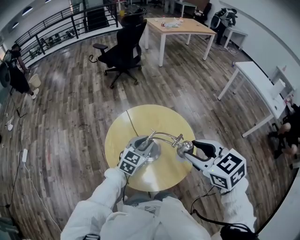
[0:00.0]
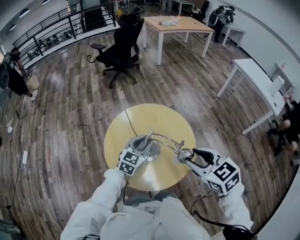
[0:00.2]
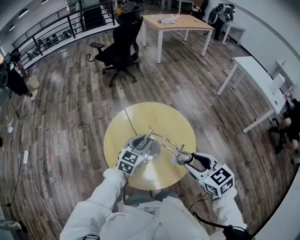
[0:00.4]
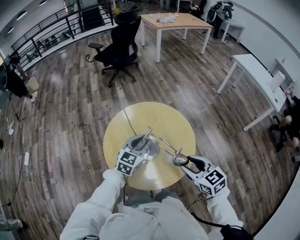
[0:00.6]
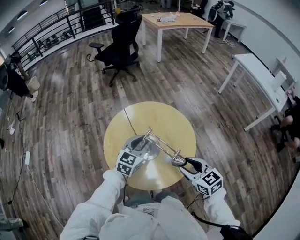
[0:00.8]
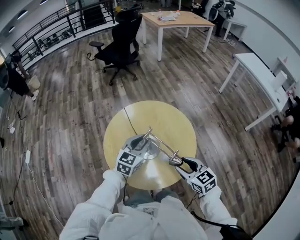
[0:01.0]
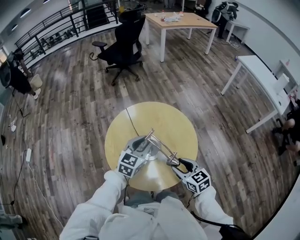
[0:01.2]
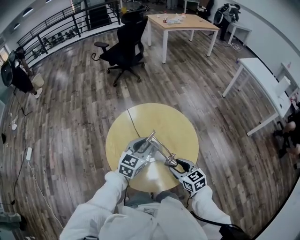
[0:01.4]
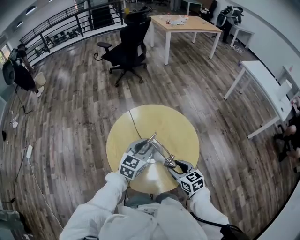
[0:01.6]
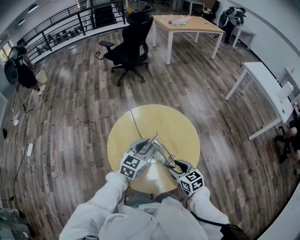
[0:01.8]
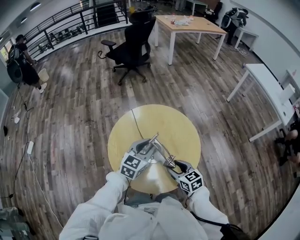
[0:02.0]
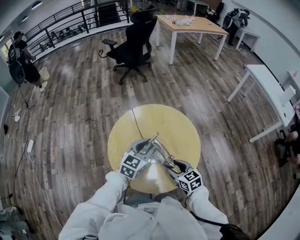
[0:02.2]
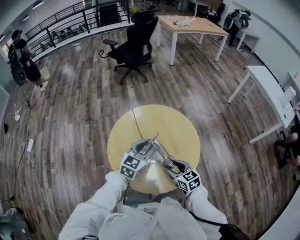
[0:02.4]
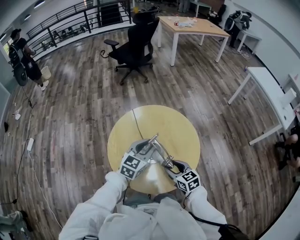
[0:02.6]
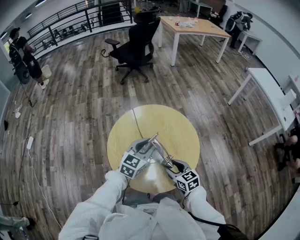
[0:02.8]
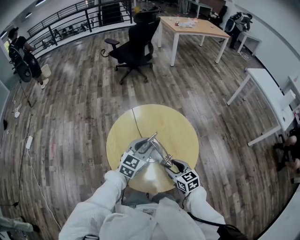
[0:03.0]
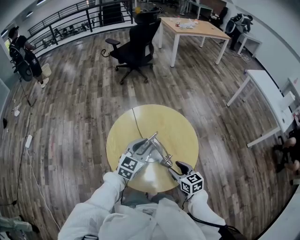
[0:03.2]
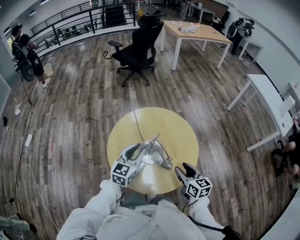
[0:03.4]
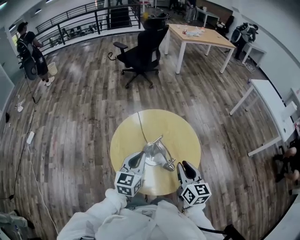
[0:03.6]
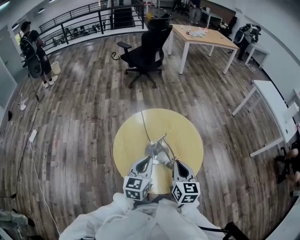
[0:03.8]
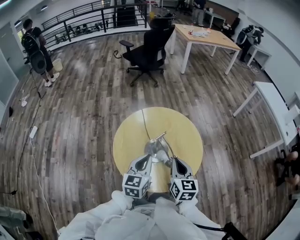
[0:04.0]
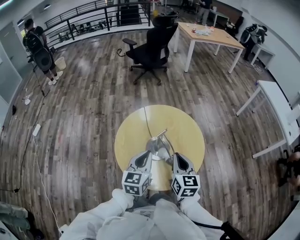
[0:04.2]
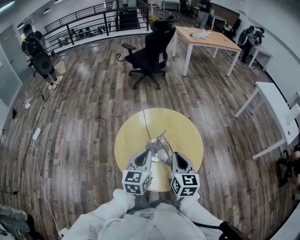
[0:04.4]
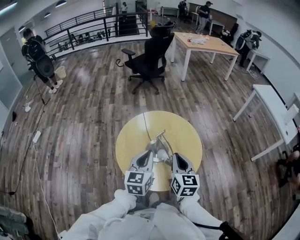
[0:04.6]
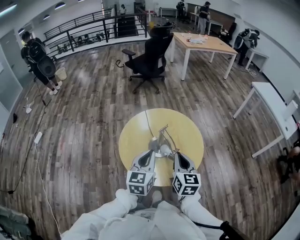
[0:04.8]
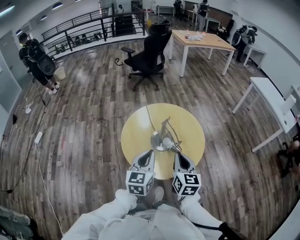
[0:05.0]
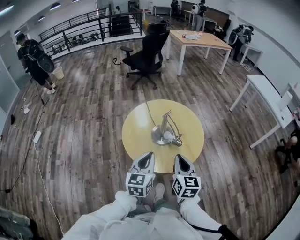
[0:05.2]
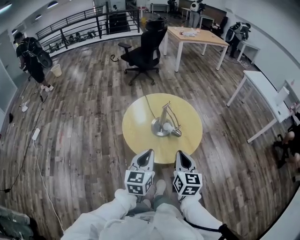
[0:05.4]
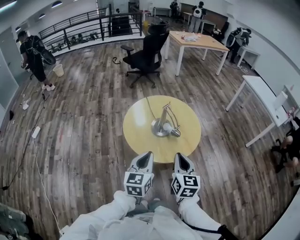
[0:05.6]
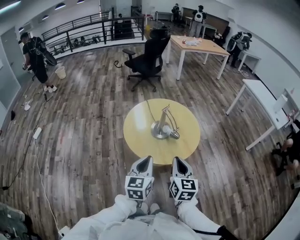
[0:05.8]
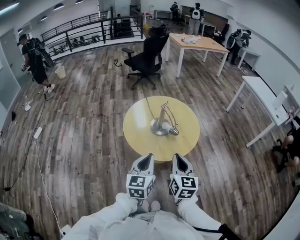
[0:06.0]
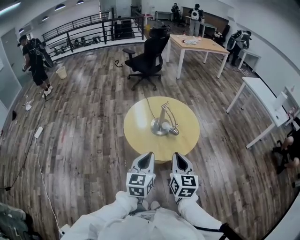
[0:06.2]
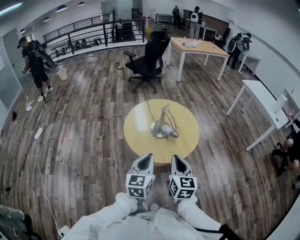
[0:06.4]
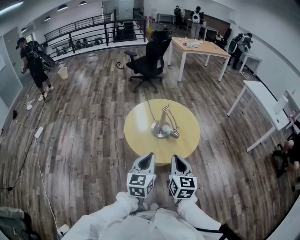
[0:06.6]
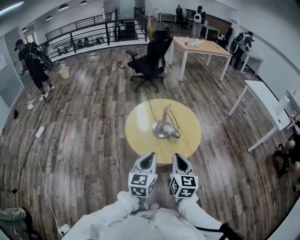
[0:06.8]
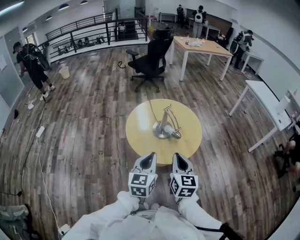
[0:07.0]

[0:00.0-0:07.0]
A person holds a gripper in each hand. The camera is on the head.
0:00.0 to 0:01.4: The right gripper travels downward by some 25 cm.
0:01.4 to 0:02.8: The grippers make only small movements.
0:02.8 to 0:04.2: The left gripper is displaced backward by roughly 10 cm, turns by roughly 30 degrees, and closes up; the right gripper moves upward, about 15 cm, swivels about 30 degrees, and closes up.
0:04.2 to 0:05.6: The two grippers go approximately 25 cm backward.
0:05.6 to 0:07.0: The grippers make only small movements.

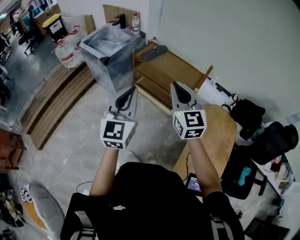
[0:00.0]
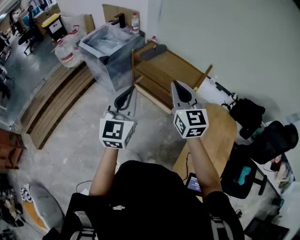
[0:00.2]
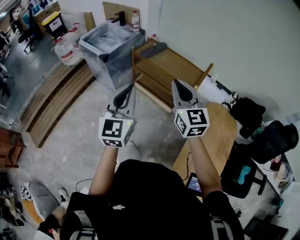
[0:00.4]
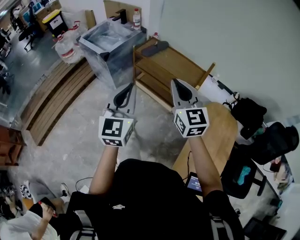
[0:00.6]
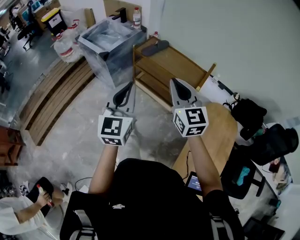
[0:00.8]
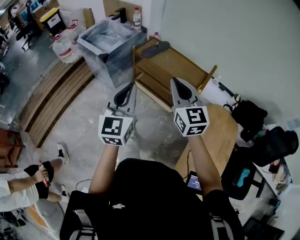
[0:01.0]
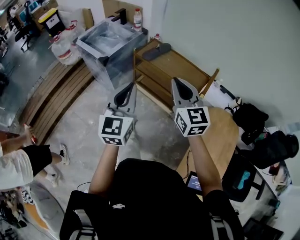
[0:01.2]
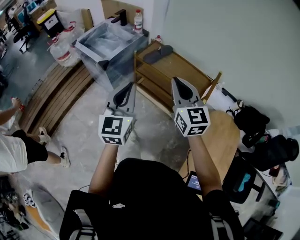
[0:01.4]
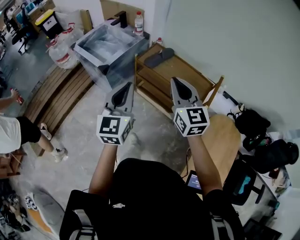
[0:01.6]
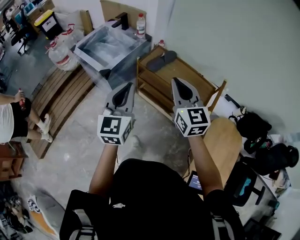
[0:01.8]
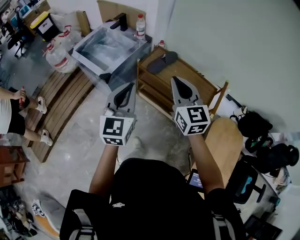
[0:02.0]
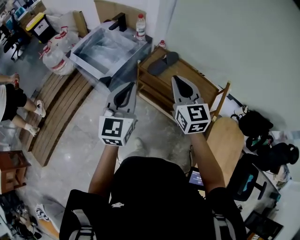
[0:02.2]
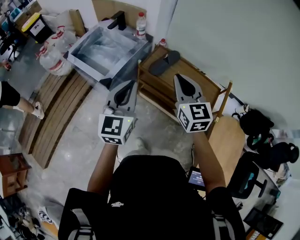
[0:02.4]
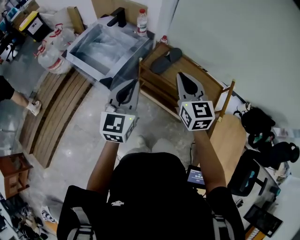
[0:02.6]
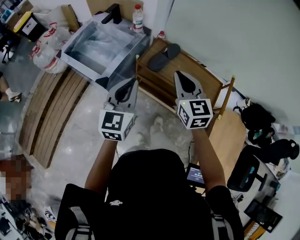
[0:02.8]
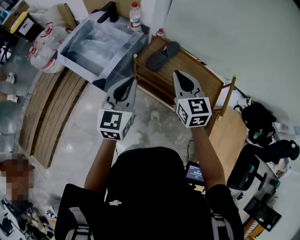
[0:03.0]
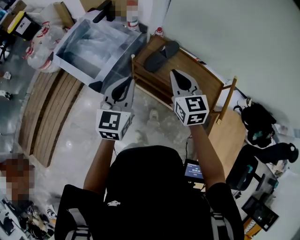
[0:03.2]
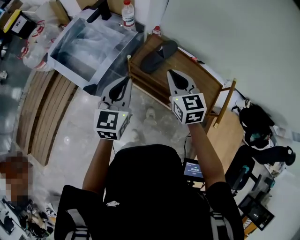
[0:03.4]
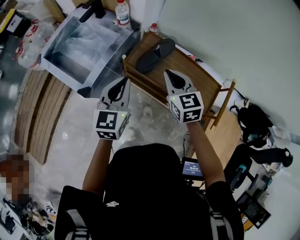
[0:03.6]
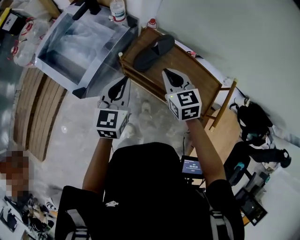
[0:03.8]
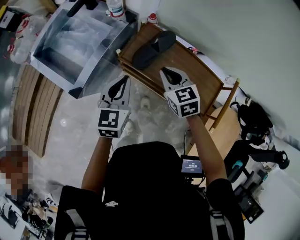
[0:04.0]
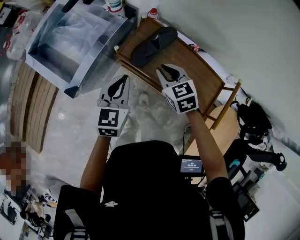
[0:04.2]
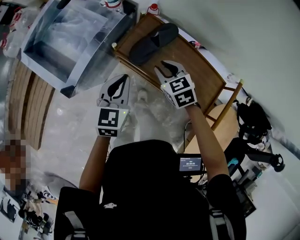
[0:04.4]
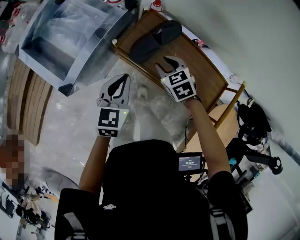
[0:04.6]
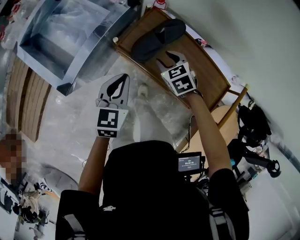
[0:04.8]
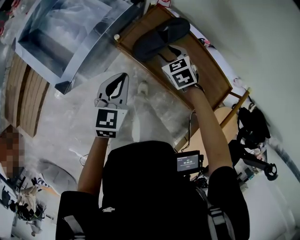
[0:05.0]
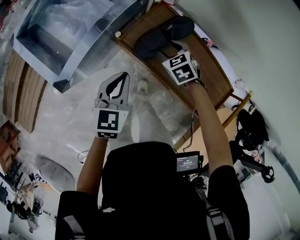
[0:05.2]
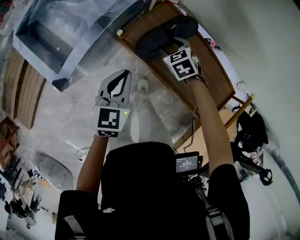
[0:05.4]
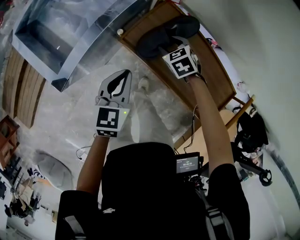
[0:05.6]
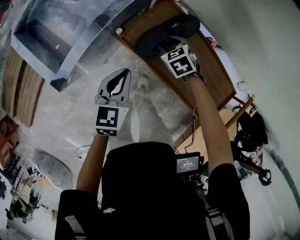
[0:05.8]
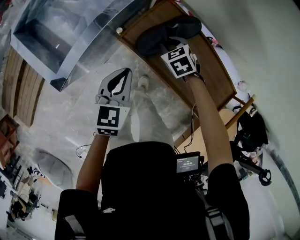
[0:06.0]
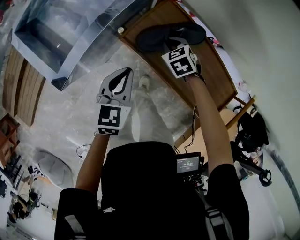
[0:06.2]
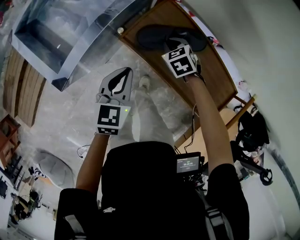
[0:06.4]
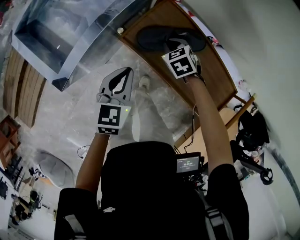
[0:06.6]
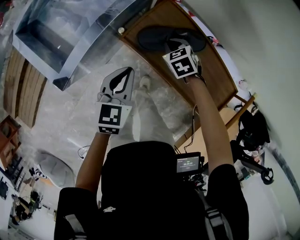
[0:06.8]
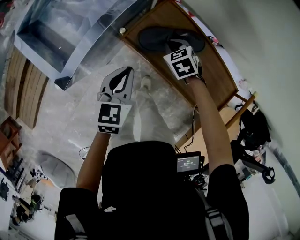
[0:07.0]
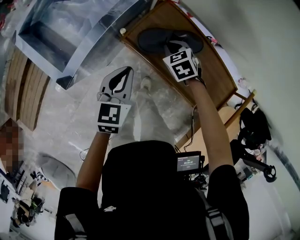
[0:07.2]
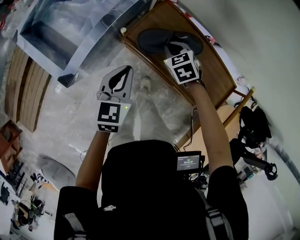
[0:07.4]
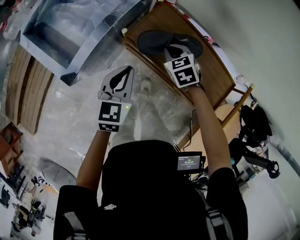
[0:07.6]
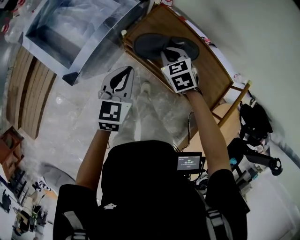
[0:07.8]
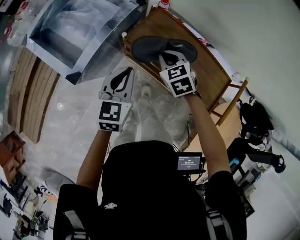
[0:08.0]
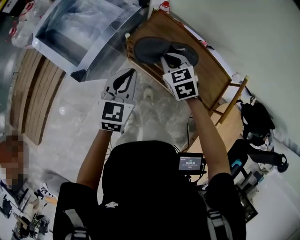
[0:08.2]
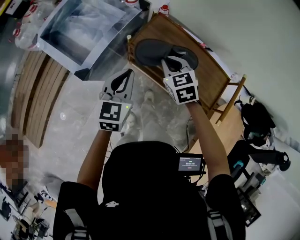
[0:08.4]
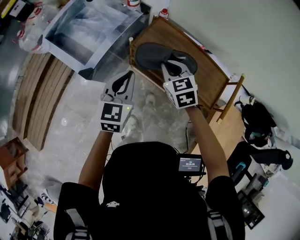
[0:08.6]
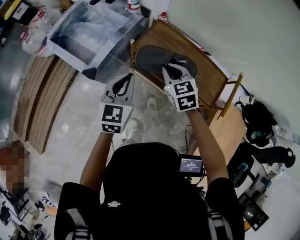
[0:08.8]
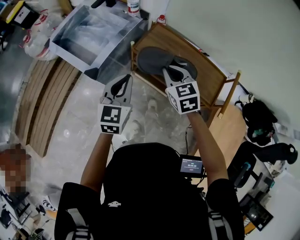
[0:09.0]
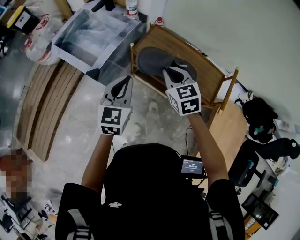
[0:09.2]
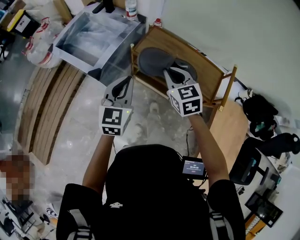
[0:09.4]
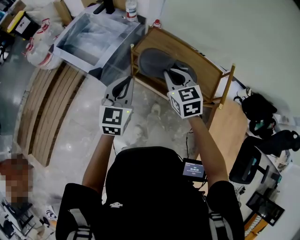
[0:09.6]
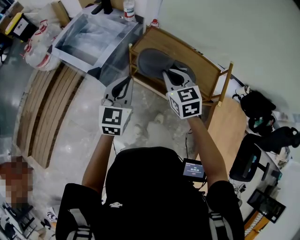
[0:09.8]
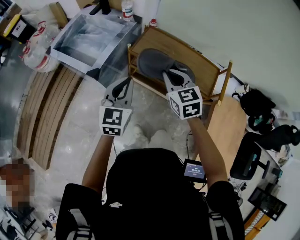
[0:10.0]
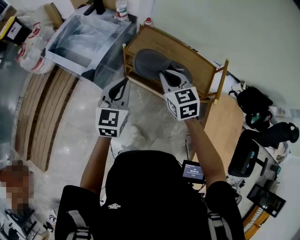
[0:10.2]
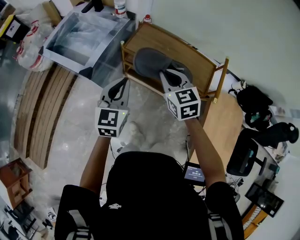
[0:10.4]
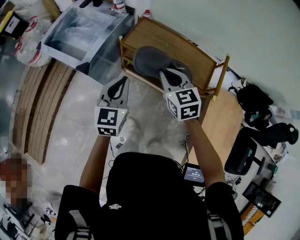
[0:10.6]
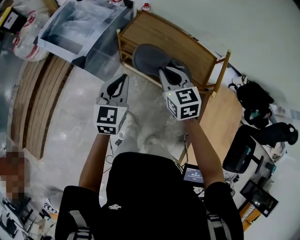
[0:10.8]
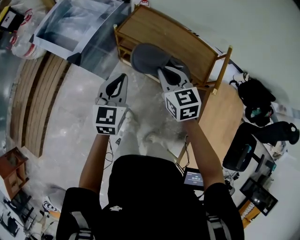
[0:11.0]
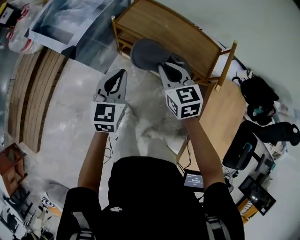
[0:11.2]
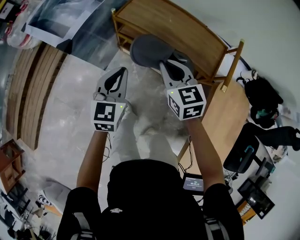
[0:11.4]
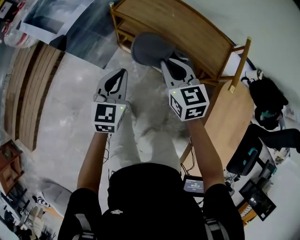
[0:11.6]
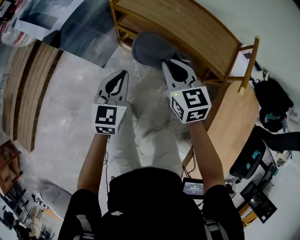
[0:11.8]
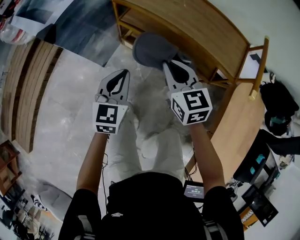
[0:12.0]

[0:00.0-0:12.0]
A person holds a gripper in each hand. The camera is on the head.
0:00.0 to 0:01.6: The two grippers go about 20 cm forward.
0:01.6 to 0:03.0: The left gripper shifts some 20 cm forward; the right gripper is displaced forward and downward by about 25 cm.
0:03.0 to 0:04.4: The two grippers go roughly 25 cm downward and forward. The right gripper tips its fingers downward by some 30 degrees.
0:04.4 to 0:06.0: The right gripper moves downward and forward, about 15 cm, and opens, then closes again. Meanwhile the left gripper travels downward by roughly 10 cm.
0:06.0 to 0:07.6: The left gripper changes place by some 5 cm. Meanwhile the right gripper moves upward, about 10 cm, and closes its fingers.
0:07.6 to 0:09.0: Both grippers travel together upward and backward, some 20 cm. The right gripper changes its angle by roughly 20 degrees.
0:09.0 to 0:10.4: The grippers both shift backward by some 5 cm.
0:10.4 to 0:12.0: Both grippers move downward, some 30 cm.

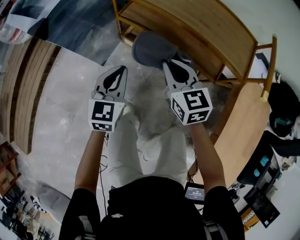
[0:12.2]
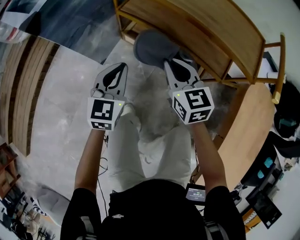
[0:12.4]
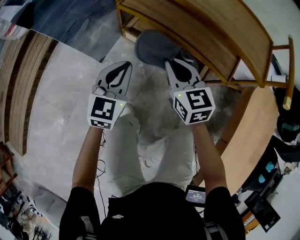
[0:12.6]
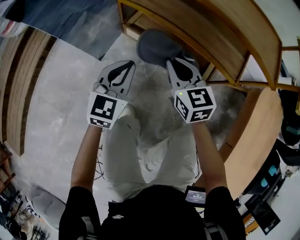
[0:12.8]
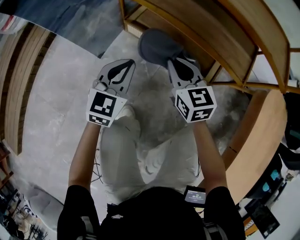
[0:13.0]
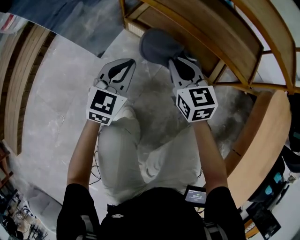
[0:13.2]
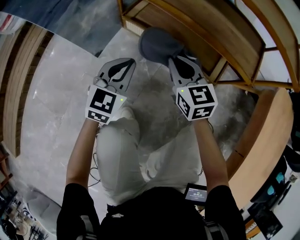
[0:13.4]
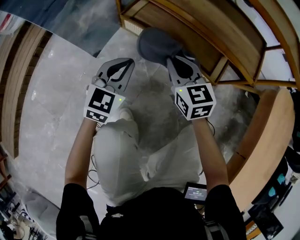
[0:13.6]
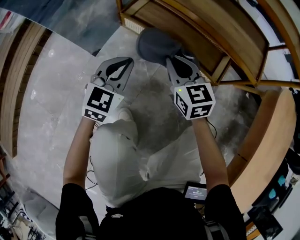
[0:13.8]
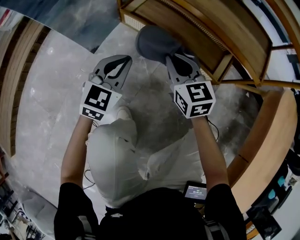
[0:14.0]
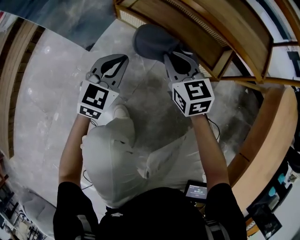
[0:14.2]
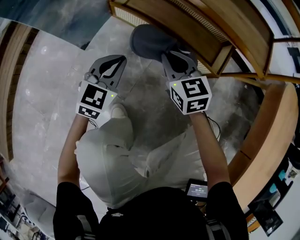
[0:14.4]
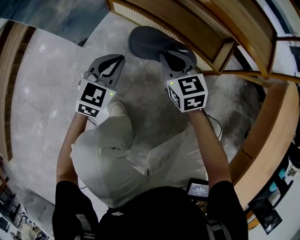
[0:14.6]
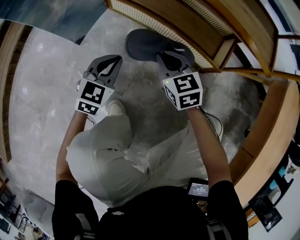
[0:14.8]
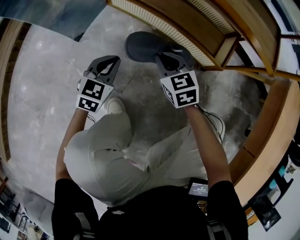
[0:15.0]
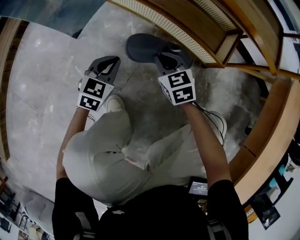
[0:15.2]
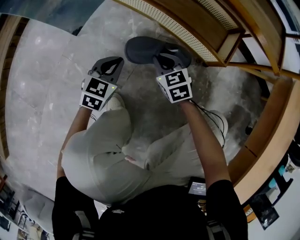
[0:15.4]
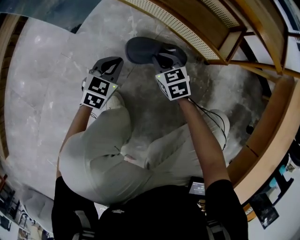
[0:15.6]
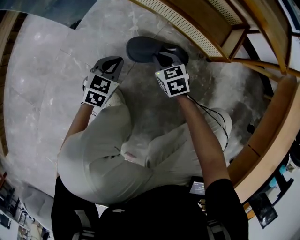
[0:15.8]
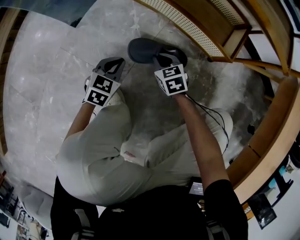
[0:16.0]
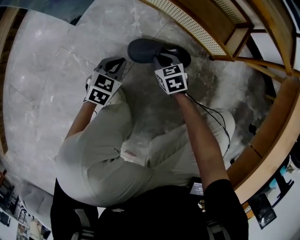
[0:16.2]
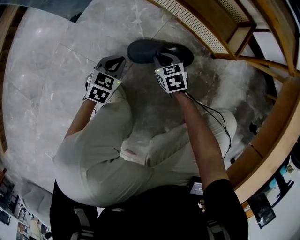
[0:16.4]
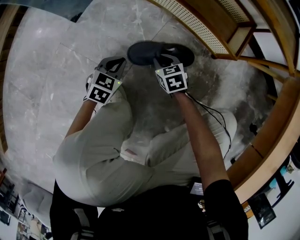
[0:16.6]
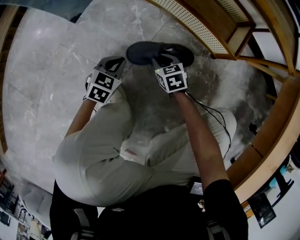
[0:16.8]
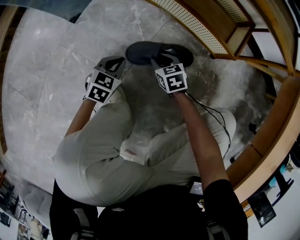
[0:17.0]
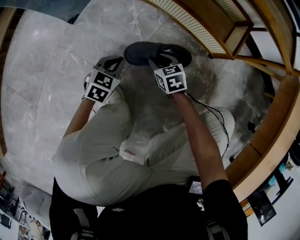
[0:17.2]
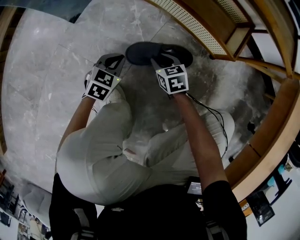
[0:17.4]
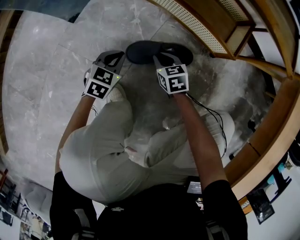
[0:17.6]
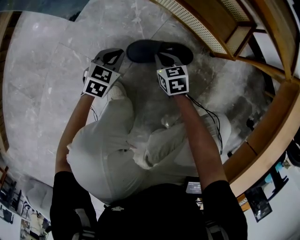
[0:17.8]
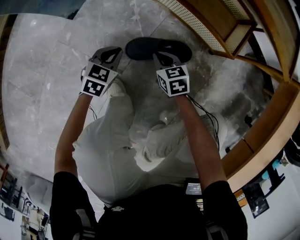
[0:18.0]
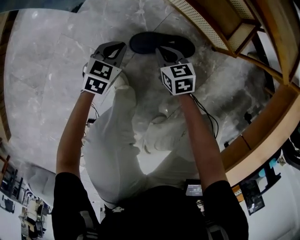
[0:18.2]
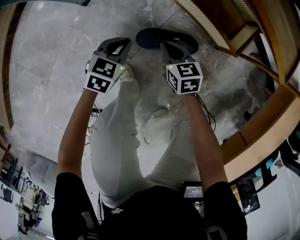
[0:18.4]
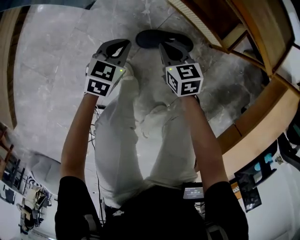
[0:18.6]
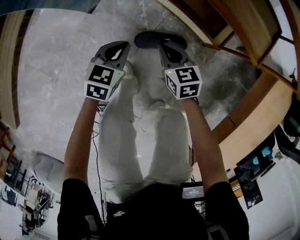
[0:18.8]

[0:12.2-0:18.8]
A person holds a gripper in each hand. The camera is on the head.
0:12.2 to 0:13.8: The two grippers go approximately 30 cm downward.
0:13.8 to 0:15.4: Both grippers move downward, roughly 20 cm. The right gripper rotates some 20 degrees.
0:15.4 to 0:17.2: The grippers both shift downward by some 10 cm. The right gripper opens.
0:17.2 to 0:18.8: Both grippers move upward, approximately 30 cm. The right gripper closes its fingers.
